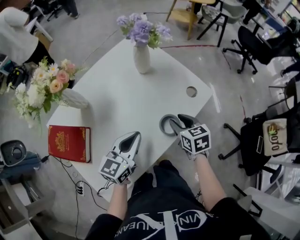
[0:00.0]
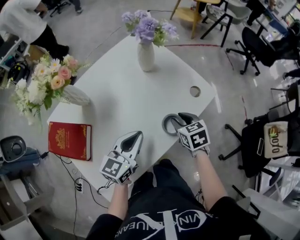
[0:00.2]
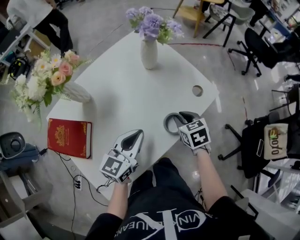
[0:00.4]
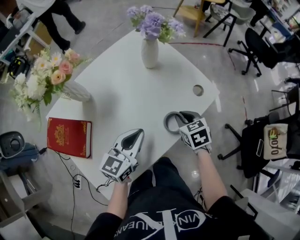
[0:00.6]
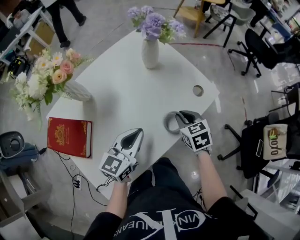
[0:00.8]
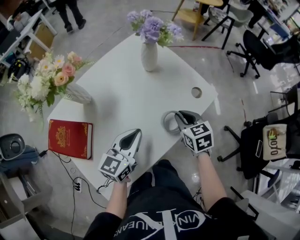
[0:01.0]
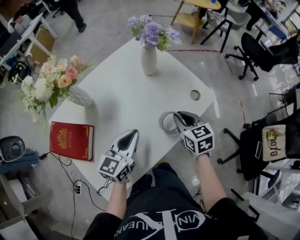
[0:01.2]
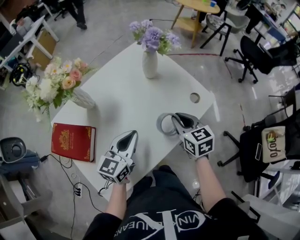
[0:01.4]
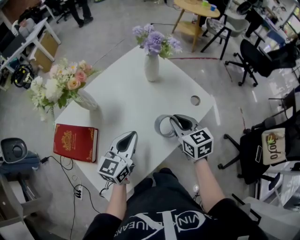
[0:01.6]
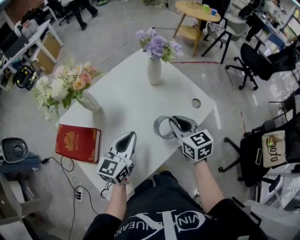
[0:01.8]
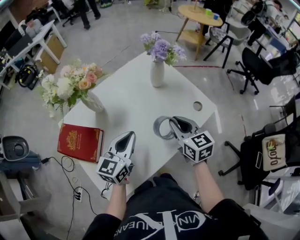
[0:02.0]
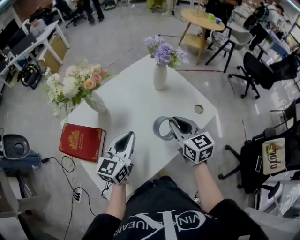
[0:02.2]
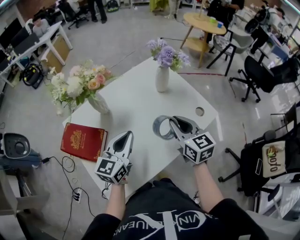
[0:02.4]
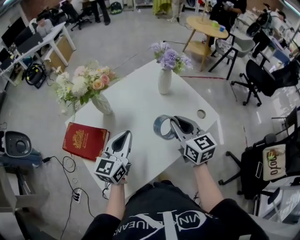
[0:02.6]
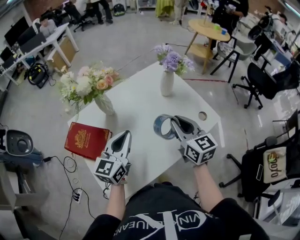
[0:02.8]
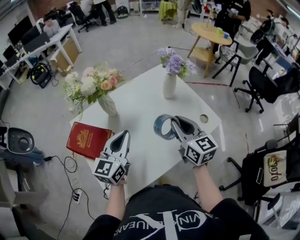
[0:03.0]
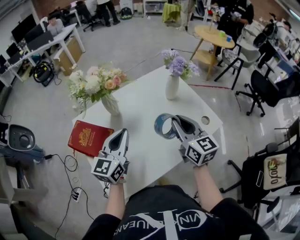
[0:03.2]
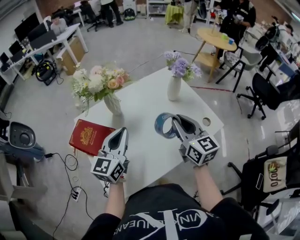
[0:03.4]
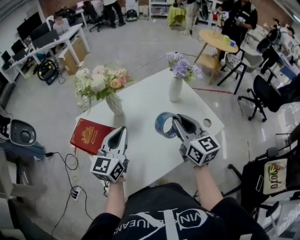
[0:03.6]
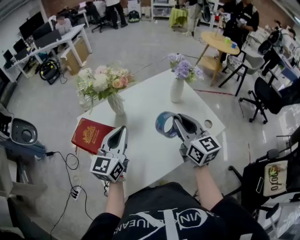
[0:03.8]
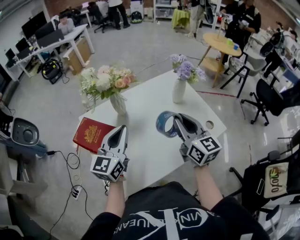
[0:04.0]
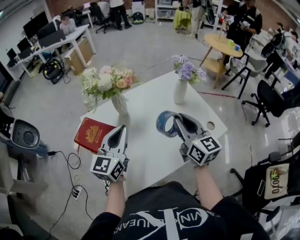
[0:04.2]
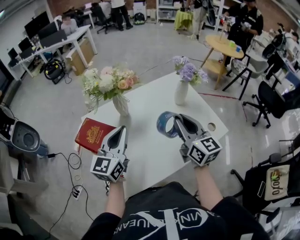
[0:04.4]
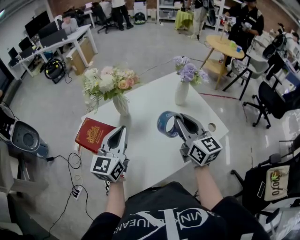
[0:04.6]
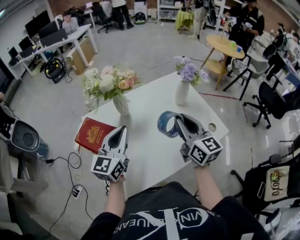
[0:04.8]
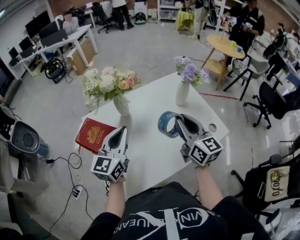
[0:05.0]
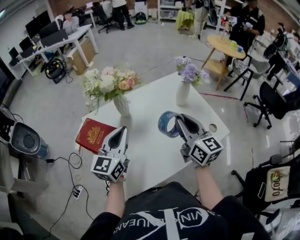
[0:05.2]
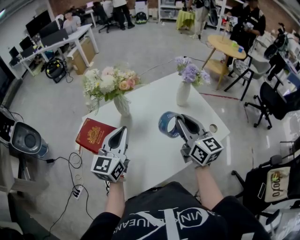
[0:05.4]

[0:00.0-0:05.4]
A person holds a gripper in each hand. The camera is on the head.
0.0 to 1.4 s: The right gripper travels upward by roughly 5 cm, and closes up.
1.4 to 2.8 s: Both grippers move upward and to the left, approximately 15 cm. The right gripper turns by approximately 20 degrees.
2.8 to 4.0 s: The grippers both shift upward by roughly 5 cm.
4.0 to 5.4 s: There are only small adjustments of the grippers.

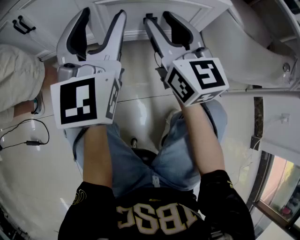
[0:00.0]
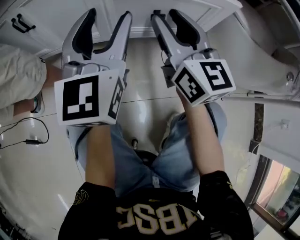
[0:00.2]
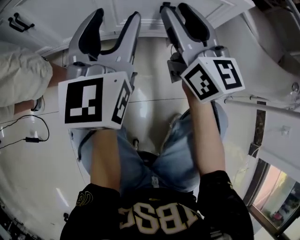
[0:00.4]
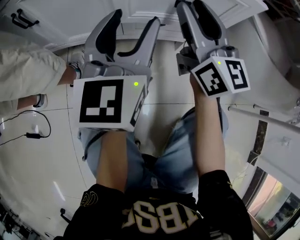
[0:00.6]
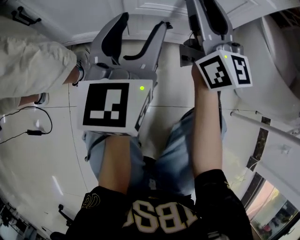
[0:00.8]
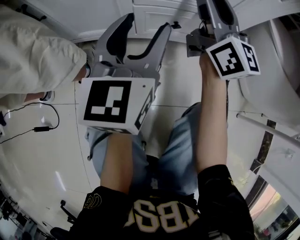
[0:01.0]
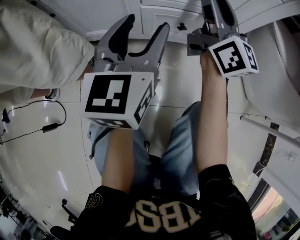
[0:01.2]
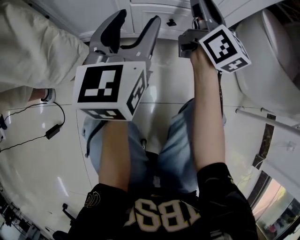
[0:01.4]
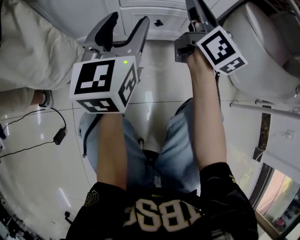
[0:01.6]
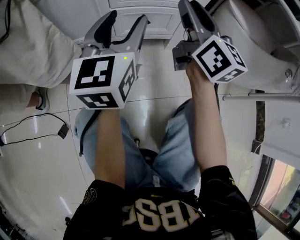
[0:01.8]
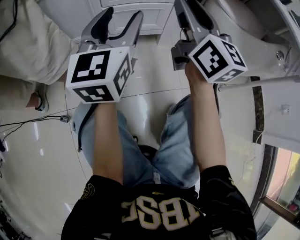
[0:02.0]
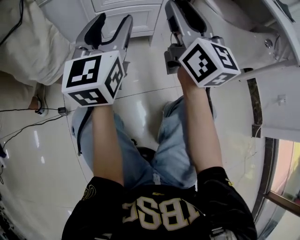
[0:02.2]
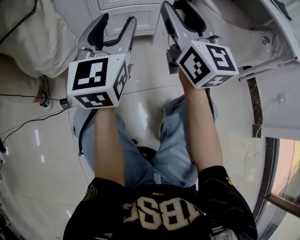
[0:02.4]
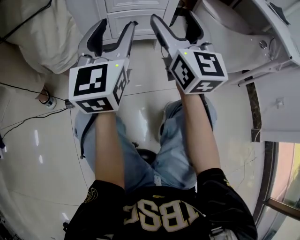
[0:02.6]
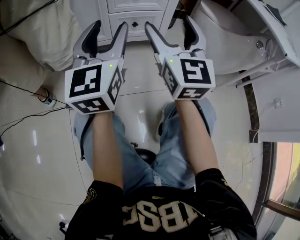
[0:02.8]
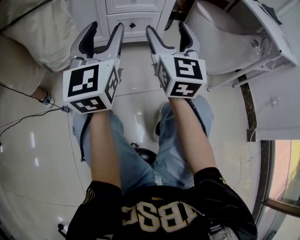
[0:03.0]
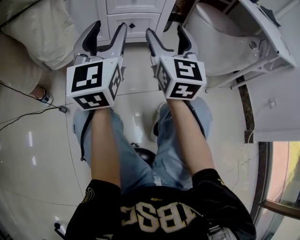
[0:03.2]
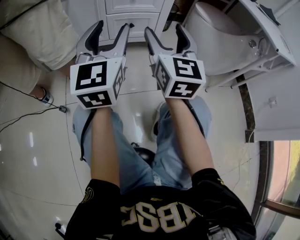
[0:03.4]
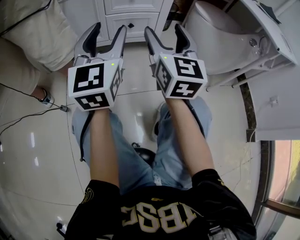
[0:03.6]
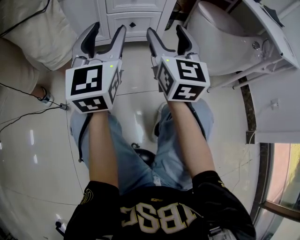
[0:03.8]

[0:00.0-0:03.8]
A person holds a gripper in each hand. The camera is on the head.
0.0 to 1.2 s: The left gripper goes about 10 cm downward and forward; the right gripper is displaced forward by some 15 cm, and turns by roughly 30 degrees.
1.2 to 2.6 s: The left gripper goes roughly 25 cm backward and upward; the right gripper travels backward by roughly 30 cm, turns by roughly 30 degrees, and opens up.
2.6 to 3.8 s: The grippers stay close to where they were, moving slightly.

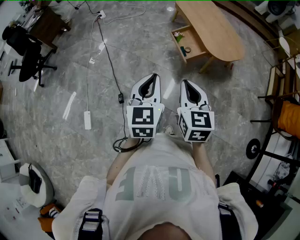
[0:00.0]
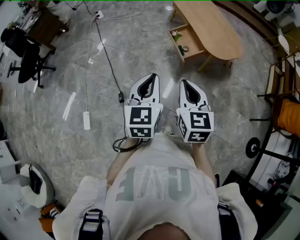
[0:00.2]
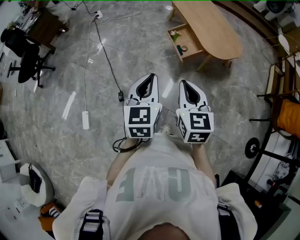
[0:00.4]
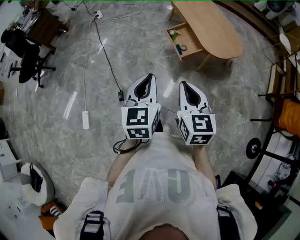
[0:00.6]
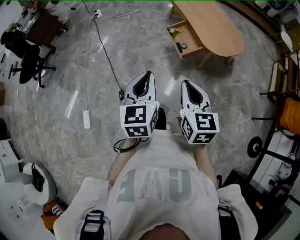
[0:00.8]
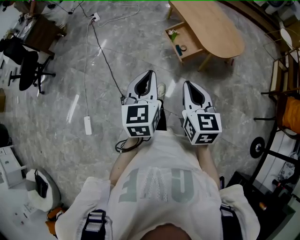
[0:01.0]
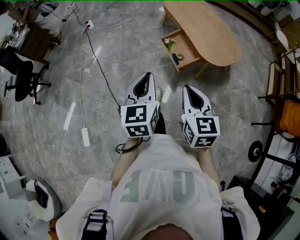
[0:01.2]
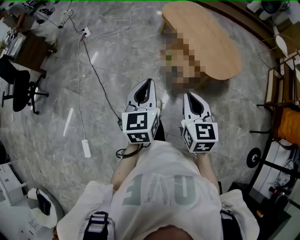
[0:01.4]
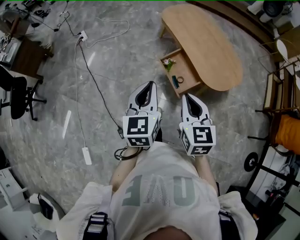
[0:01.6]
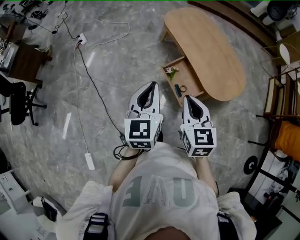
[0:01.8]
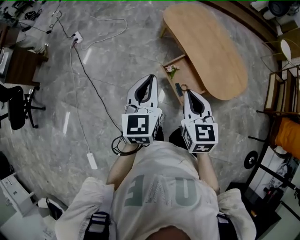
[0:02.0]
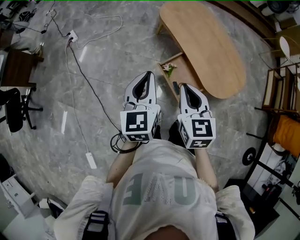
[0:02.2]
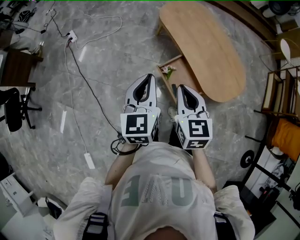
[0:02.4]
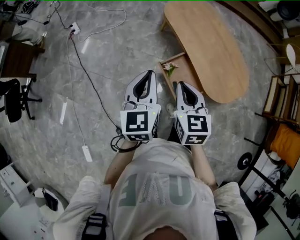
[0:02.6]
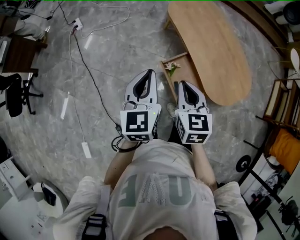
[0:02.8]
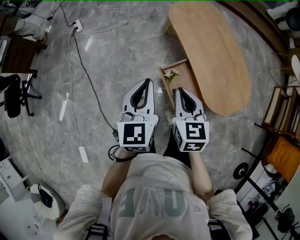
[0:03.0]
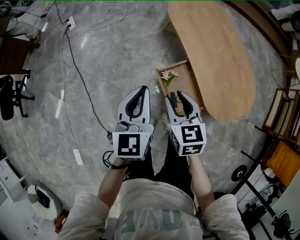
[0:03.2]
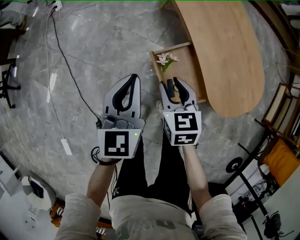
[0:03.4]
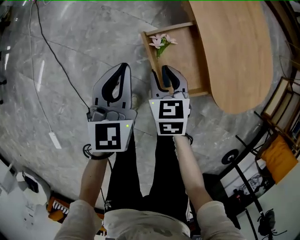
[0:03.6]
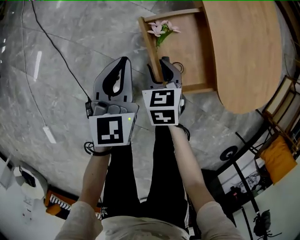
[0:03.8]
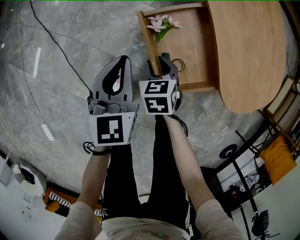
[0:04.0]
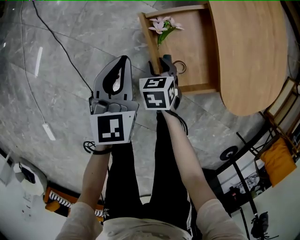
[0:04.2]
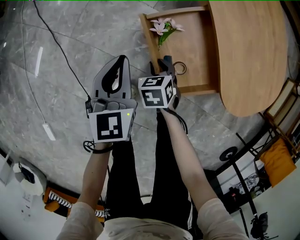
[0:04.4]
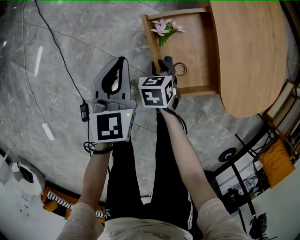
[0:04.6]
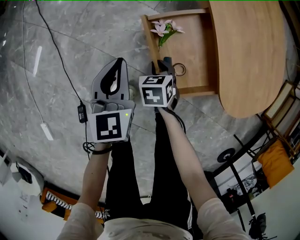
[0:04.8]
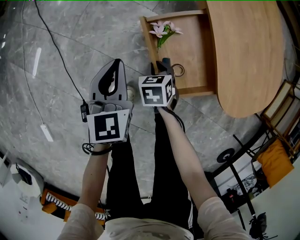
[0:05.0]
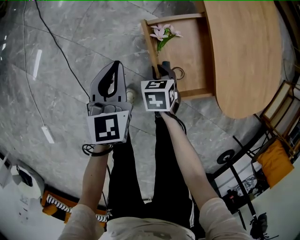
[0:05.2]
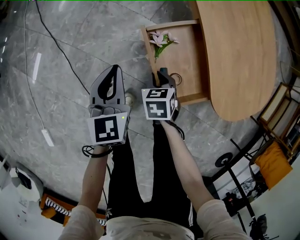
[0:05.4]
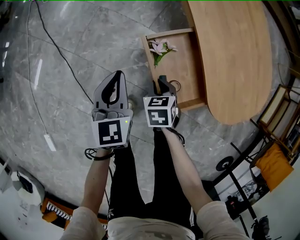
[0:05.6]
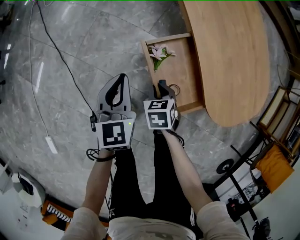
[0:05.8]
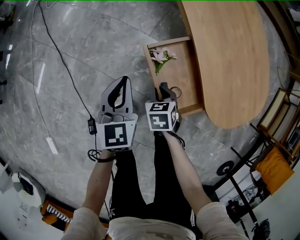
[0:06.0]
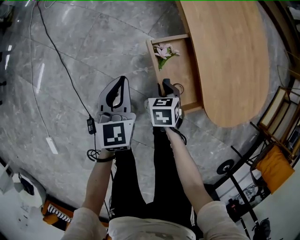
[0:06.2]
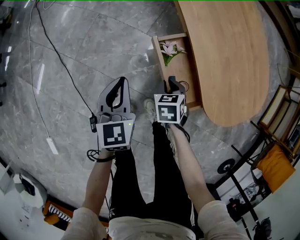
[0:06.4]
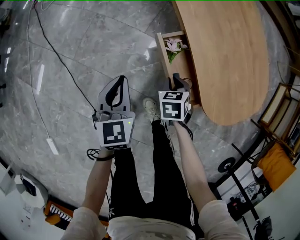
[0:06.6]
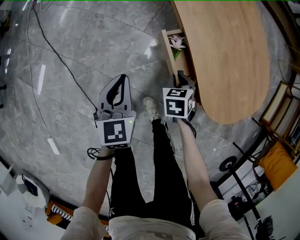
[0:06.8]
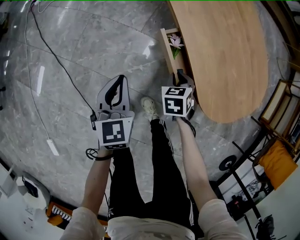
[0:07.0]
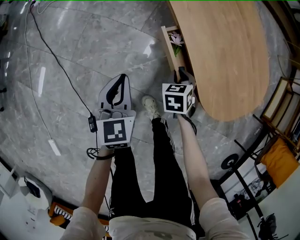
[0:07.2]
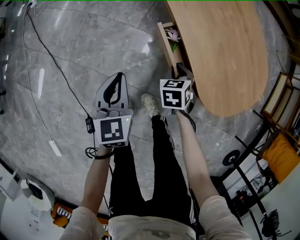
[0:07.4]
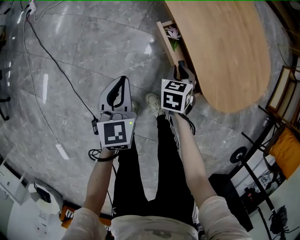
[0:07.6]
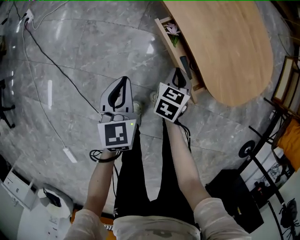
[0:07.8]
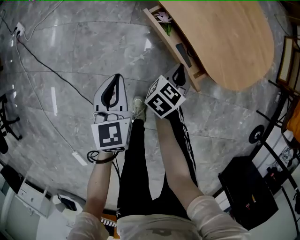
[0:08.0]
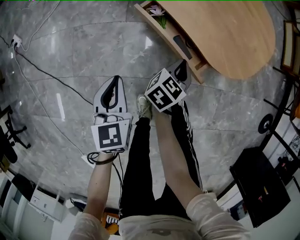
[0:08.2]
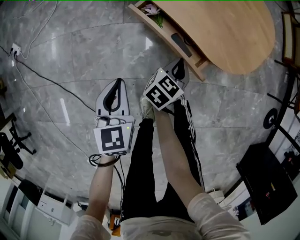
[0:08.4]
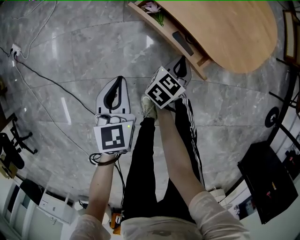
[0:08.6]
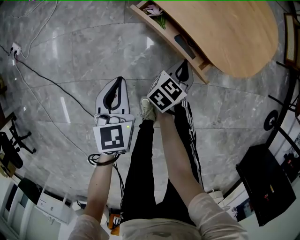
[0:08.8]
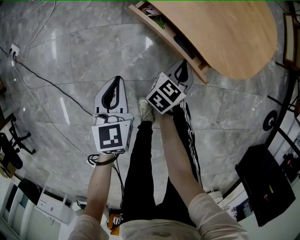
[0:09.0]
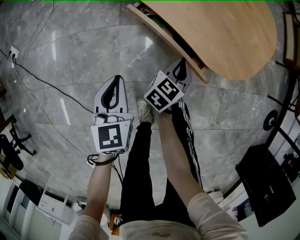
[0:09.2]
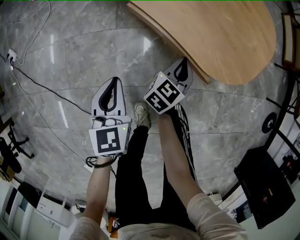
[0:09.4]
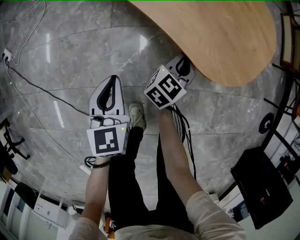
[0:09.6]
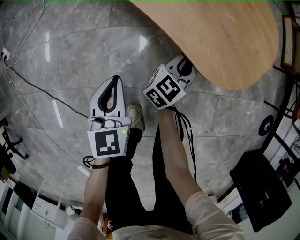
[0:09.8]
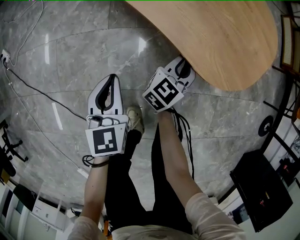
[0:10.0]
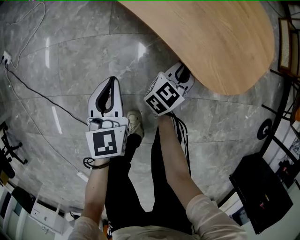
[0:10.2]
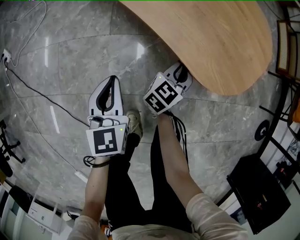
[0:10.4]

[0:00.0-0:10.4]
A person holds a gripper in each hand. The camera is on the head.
0.0 to 1.4 s: The two grippers go roughly 20 cm forward.
1.4 to 3.0 s: Both grippers move forward, some 30 cm.
3.0 to 4.4 s: Both grippers move downward, some 40 cm. The right gripper points its fingers approximately 40 degrees further downward, and opens.
4.4 to 6.0 s: The right gripper is displaced upward by about 5 cm.
6.0 to 7.4 s: The right gripper moves to the right and forward, some 15 cm.
7.4 to 9.0 s: The right gripper changes place by approximately 10 cm, and swivels about 70 degrees. The left gripper turns by about 20 degrees.
9.0 to 10.4 s: Both grippers move forward, approximately 5 cm.

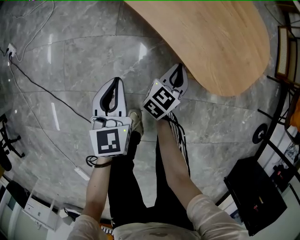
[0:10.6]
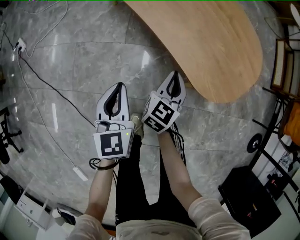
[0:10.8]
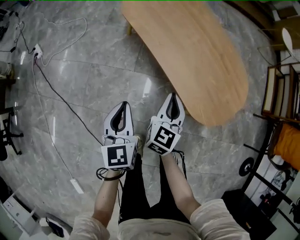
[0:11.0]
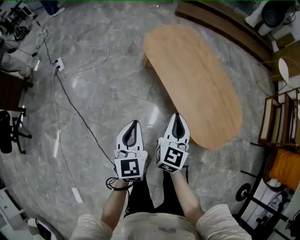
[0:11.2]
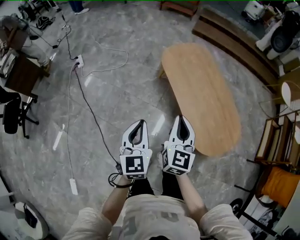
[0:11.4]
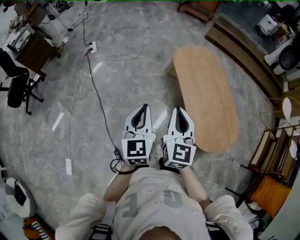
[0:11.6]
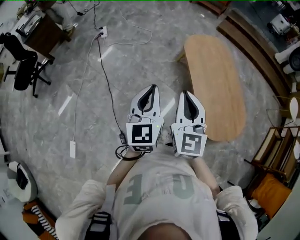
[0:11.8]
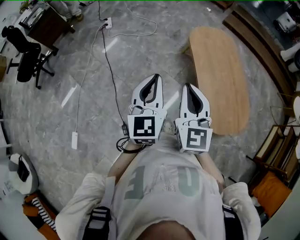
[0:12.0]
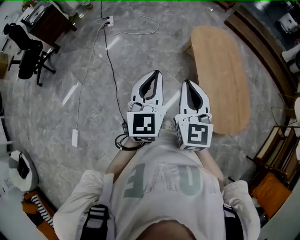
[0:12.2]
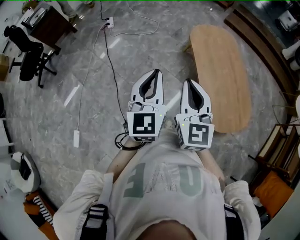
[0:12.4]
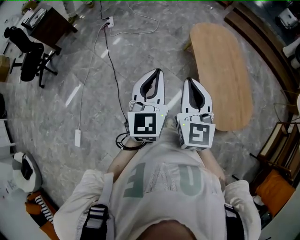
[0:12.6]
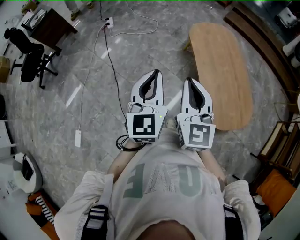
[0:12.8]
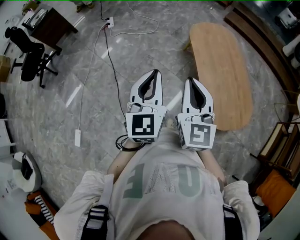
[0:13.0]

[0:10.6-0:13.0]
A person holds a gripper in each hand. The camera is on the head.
10.6 to 11.8 s: Both grippers travel together upward, roughly 50 cm. The left gripper turns by roughly 40 degrees; the right gripper rotates some 70 degrees.
11.8 to 13.0 s: The left gripper ends up some 5 cm from where it was.

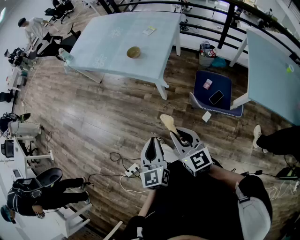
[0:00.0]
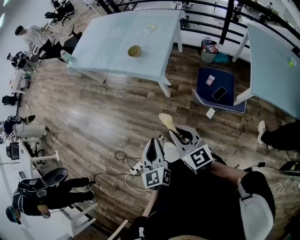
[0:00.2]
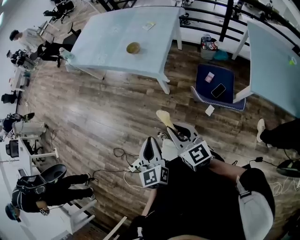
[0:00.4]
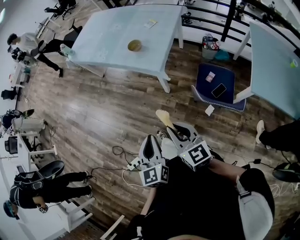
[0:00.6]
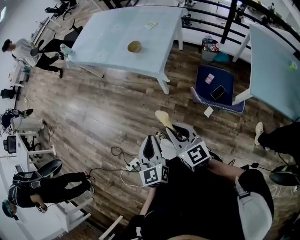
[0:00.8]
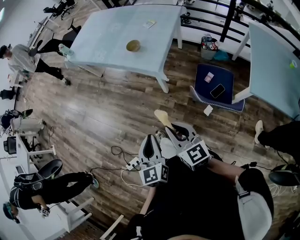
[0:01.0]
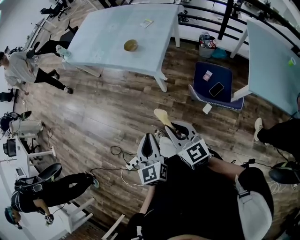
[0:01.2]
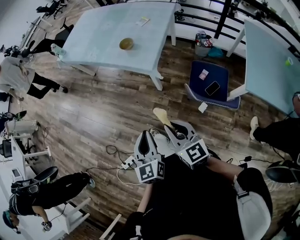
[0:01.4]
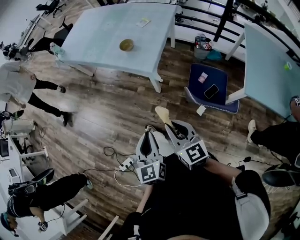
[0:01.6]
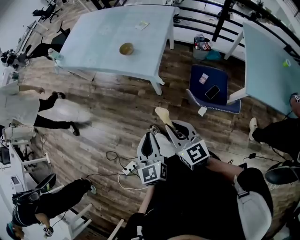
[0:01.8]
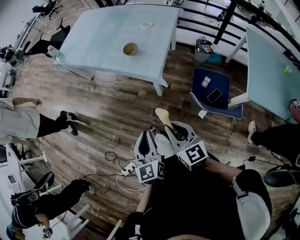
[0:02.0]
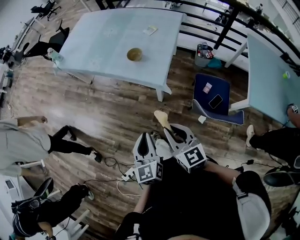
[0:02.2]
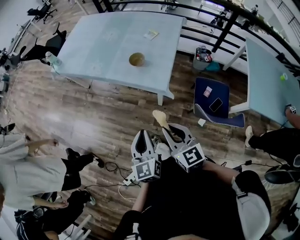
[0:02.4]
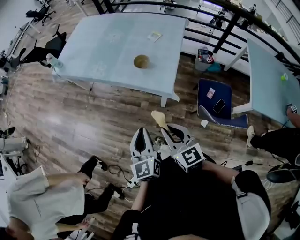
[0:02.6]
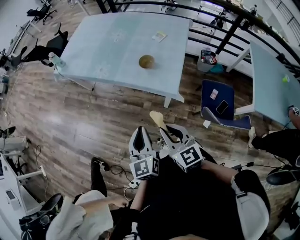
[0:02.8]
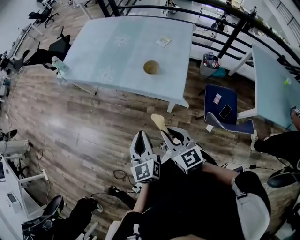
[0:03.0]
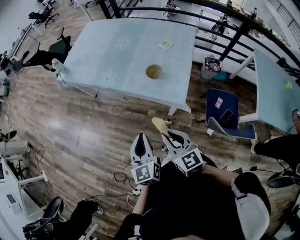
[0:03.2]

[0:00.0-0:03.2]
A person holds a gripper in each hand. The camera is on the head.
0.0 to 1.6 s: The grippers make only small movements.
1.6 to 3.2 s: The two grippers go approximately 35 cm forward and to the left.
